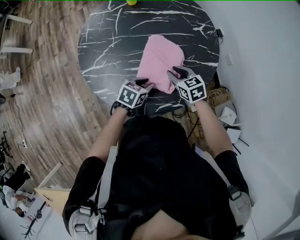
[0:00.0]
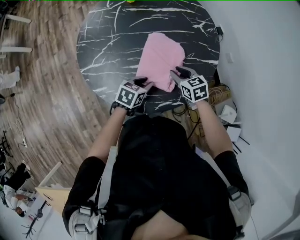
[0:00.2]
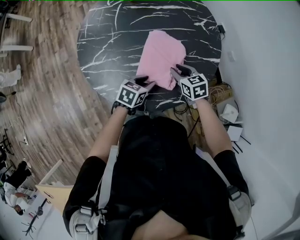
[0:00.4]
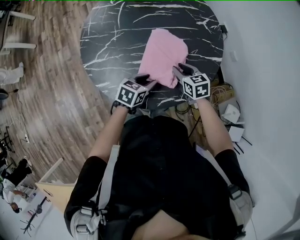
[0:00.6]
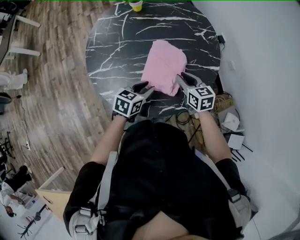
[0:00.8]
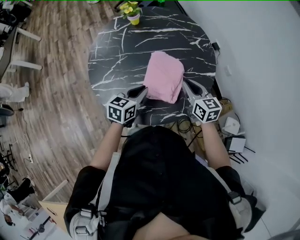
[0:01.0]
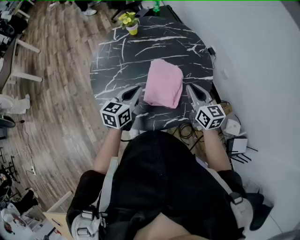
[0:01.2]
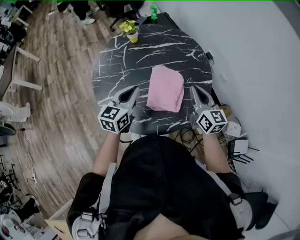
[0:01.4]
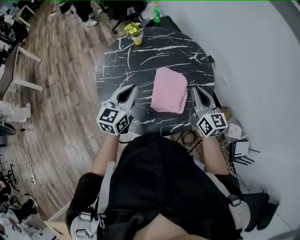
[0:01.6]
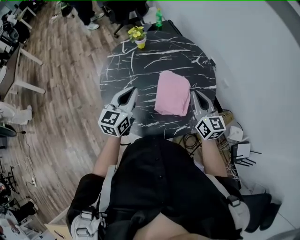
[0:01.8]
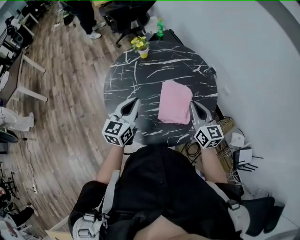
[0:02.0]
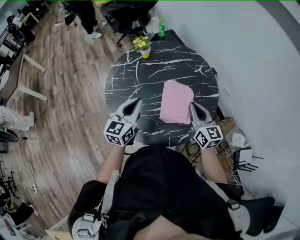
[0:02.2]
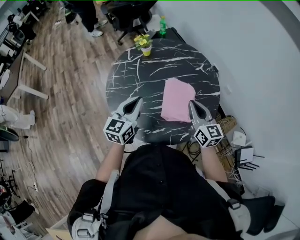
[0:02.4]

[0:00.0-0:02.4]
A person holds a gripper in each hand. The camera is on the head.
0:00.0 to 0:01.2: The left gripper shifts some 15 cm upward and to the left, and rotates some 30 degrees. Meanwhile the right gripper heads upward, covering roughly 15 cm, and turns by some 40 degrees.
0:01.2 to 0:02.4: The grippers both shift to the left and upward by some 10 cm.

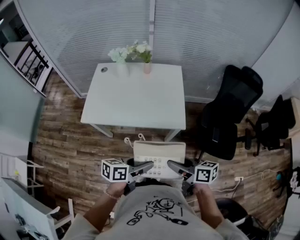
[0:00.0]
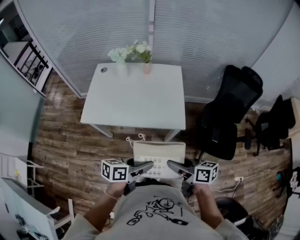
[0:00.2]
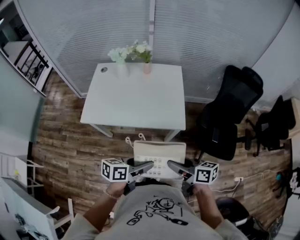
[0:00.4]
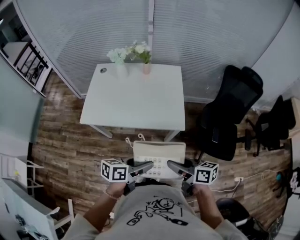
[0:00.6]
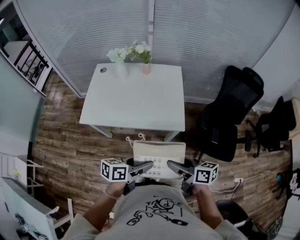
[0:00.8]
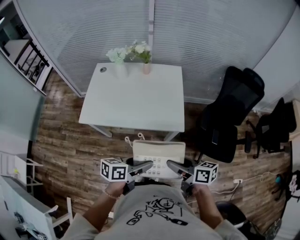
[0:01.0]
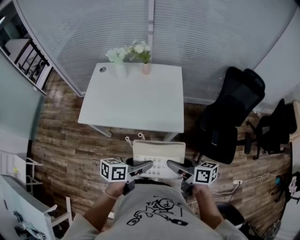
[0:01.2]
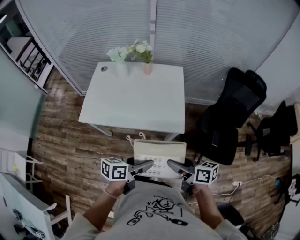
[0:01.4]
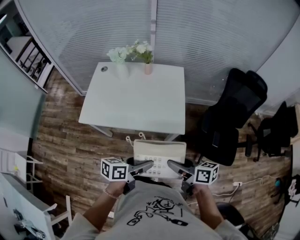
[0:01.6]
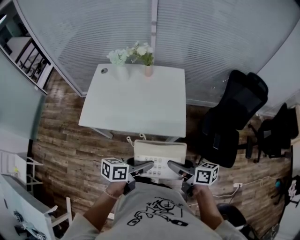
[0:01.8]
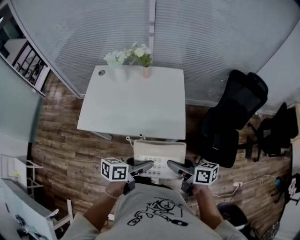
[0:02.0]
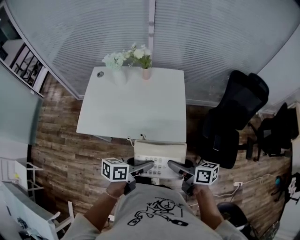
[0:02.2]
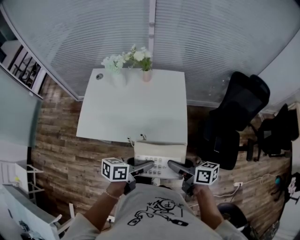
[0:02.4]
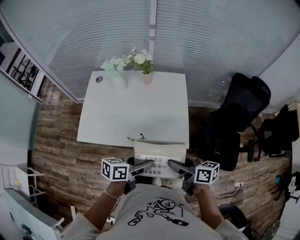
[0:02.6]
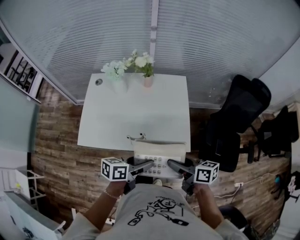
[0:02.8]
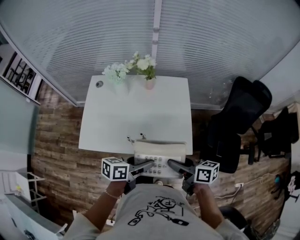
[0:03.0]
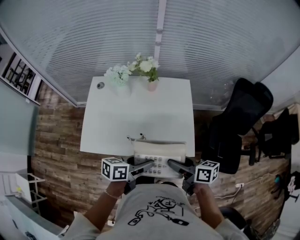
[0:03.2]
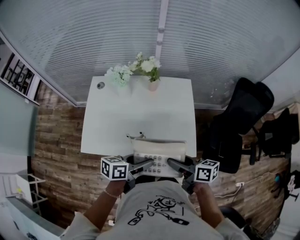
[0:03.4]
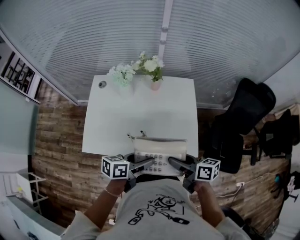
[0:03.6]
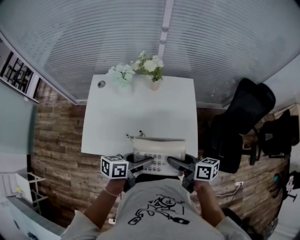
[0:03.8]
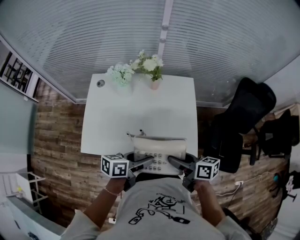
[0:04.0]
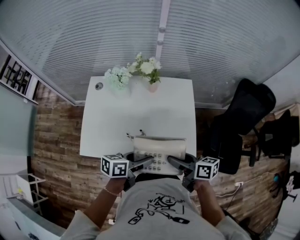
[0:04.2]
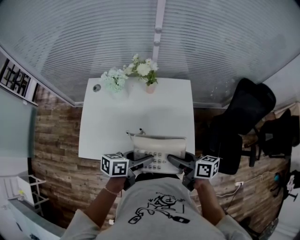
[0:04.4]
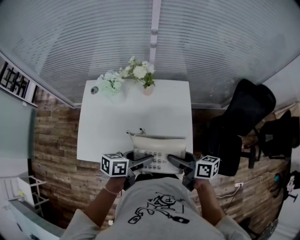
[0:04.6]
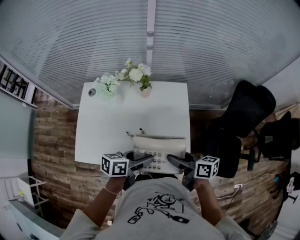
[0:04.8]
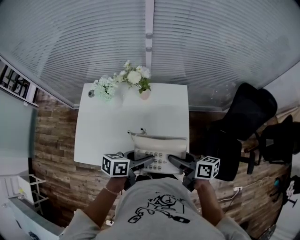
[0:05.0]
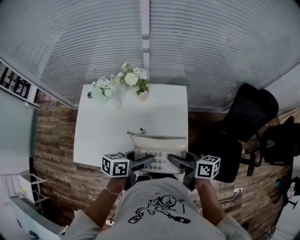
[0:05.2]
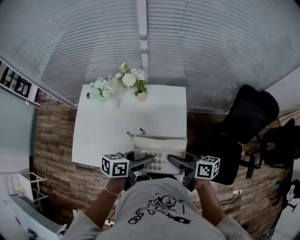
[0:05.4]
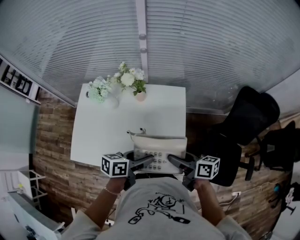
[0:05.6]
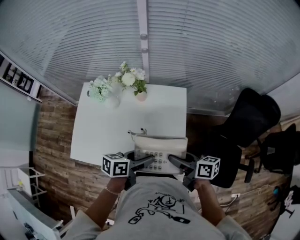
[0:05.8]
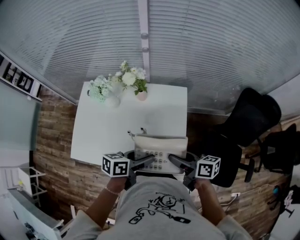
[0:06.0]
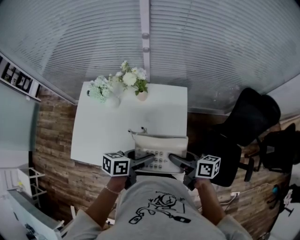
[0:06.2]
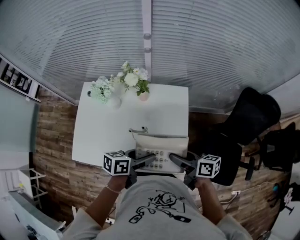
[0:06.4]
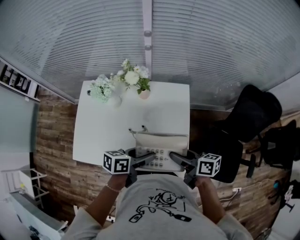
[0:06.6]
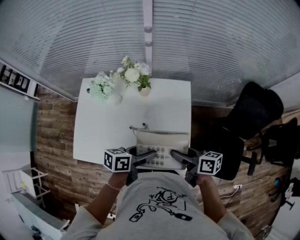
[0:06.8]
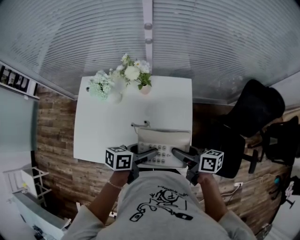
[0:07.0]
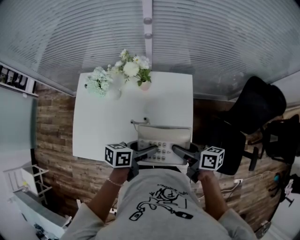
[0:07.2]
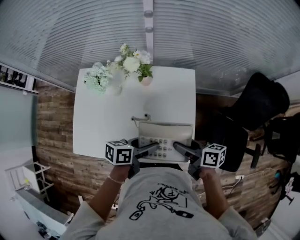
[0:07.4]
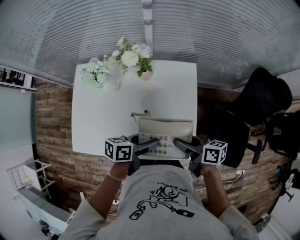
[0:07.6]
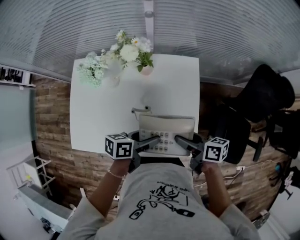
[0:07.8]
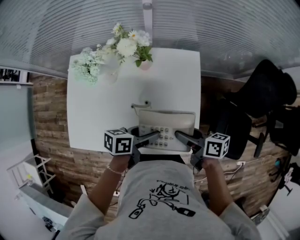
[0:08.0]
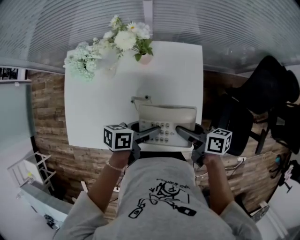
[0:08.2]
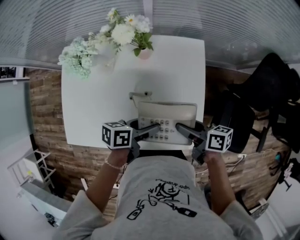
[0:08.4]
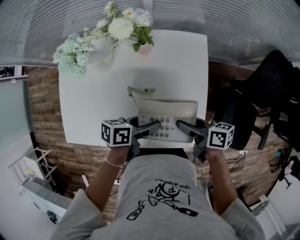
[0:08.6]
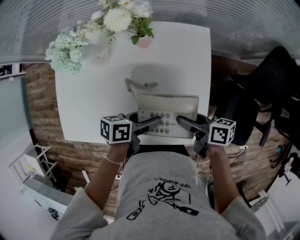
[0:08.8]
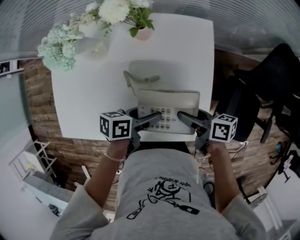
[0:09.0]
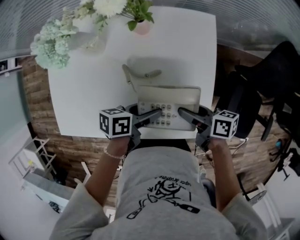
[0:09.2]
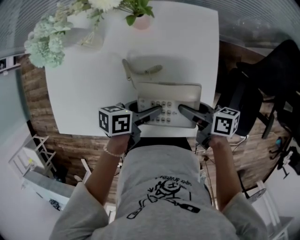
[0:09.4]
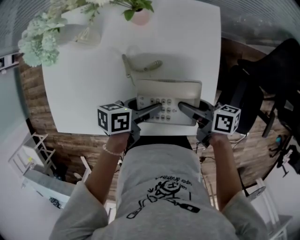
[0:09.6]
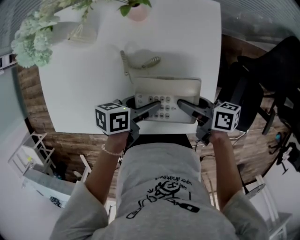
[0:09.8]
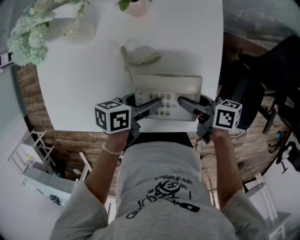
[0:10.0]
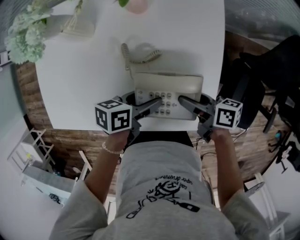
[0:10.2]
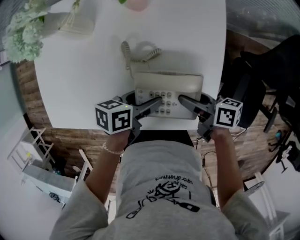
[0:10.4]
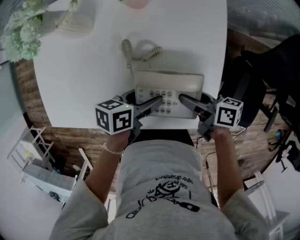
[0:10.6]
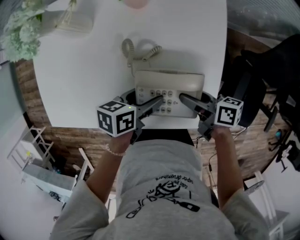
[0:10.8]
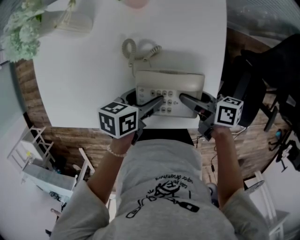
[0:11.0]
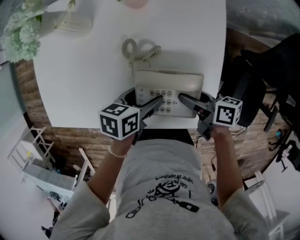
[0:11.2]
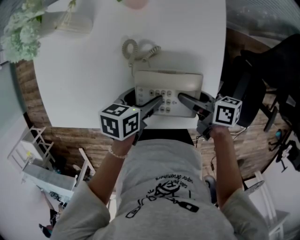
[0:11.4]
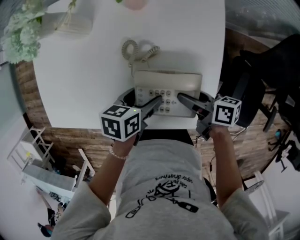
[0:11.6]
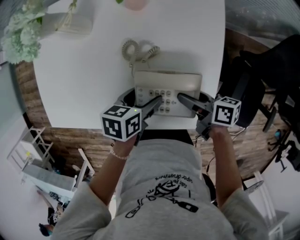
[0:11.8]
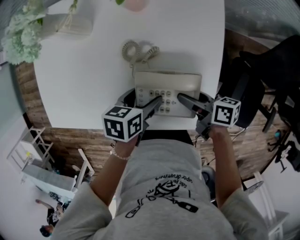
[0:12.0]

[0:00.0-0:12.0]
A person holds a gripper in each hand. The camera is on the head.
0:00.0 to 0:01.6: The grippers make only small movements.
0:01.6 to 0:03.0: The grippers both shift forward and to the left by roughly 15 cm.
0:03.0 to 0:04.4: The two grippers go approximately 10 cm forward.
0:04.4 to 0:06.0: The two grippers go approximately 10 cm to the right and forward.
0:06.0 to 0:07.6: The grippers both shift downward by approximately 5 cm.
0:07.6 to 0:09.0: Both grippers move downward, approximately 10 cm.
0:09.0 to 0:10.4: The grippers both shift downward by roughly 5 cm.
0:10.4 to 0:12.0: The grippers stay close to where they were, moving slightly.

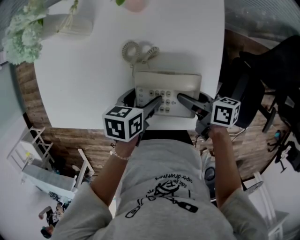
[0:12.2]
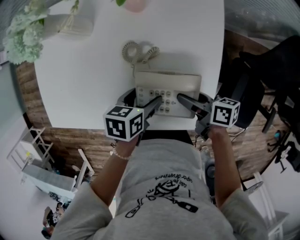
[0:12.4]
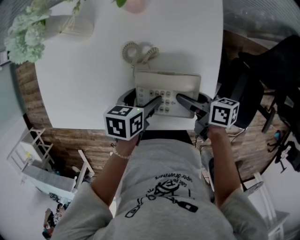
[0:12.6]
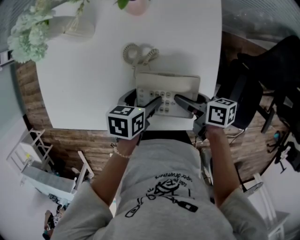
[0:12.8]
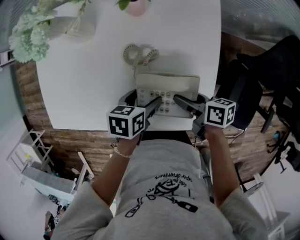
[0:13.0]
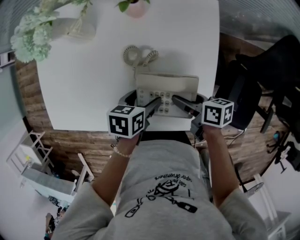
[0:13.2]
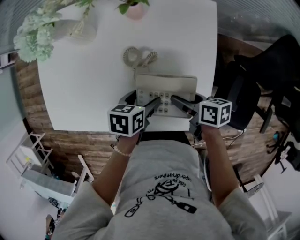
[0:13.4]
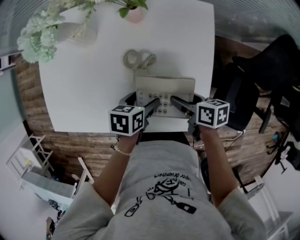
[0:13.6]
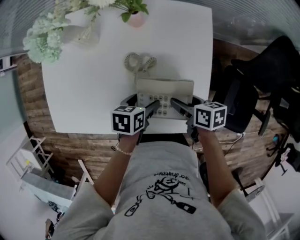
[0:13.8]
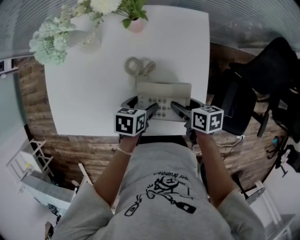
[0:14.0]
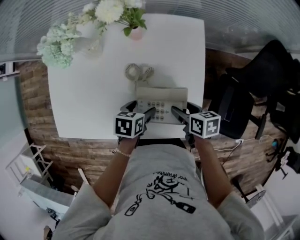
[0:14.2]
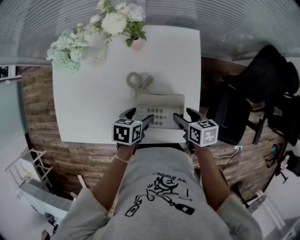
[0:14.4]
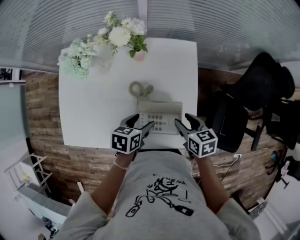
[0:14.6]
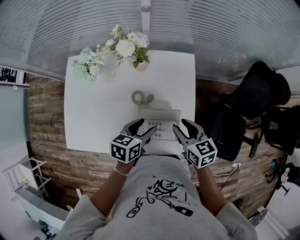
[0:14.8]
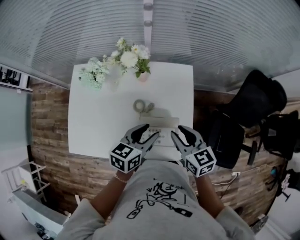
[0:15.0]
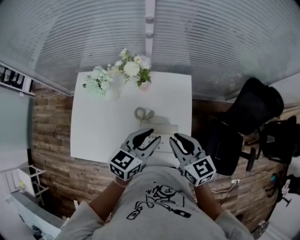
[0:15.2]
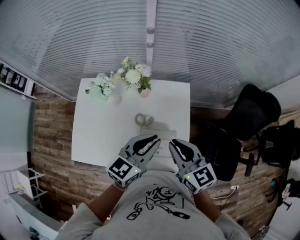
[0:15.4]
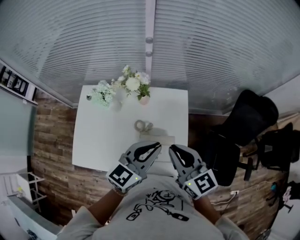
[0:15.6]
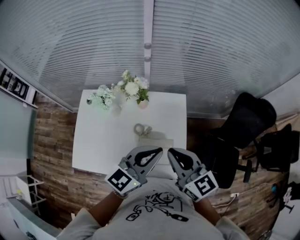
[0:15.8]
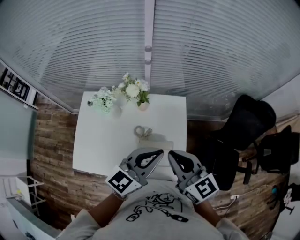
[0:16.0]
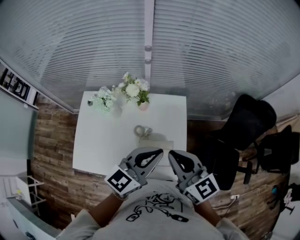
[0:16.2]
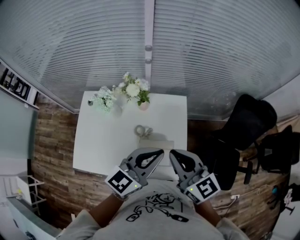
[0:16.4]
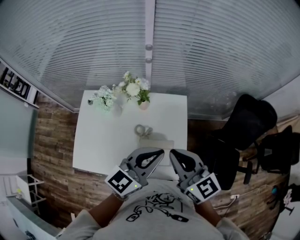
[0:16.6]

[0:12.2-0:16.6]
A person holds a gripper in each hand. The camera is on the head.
0:12.2 to 0:13.6: The grippers make only small movements.
0:13.6 to 0:15.2: The grippers both shift upward by approximately 25 cm. The left gripper angles its fingers upward, by roughly 30 degrees, and closes up, while the right gripper rotates approximately 50 degrees, and closes its fingers.
0:15.2 to 0:16.6: The two grippers go approximately 10 cm upward. The left gripper closes its fingers.

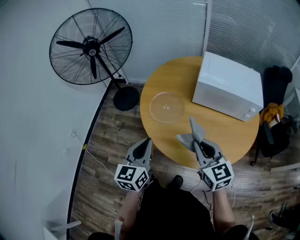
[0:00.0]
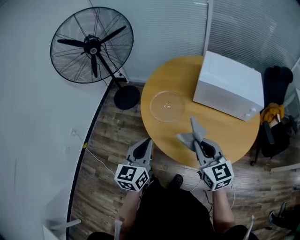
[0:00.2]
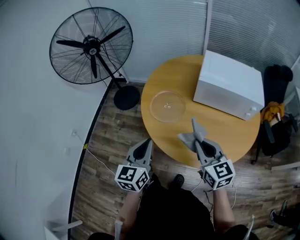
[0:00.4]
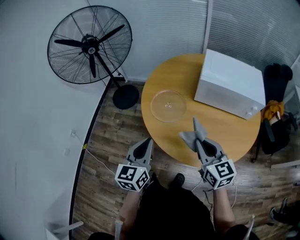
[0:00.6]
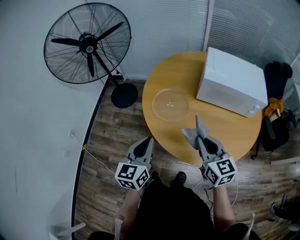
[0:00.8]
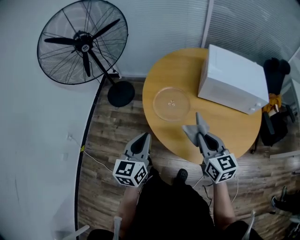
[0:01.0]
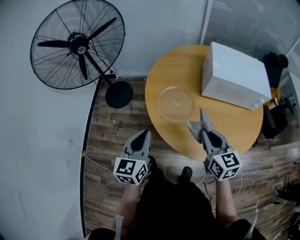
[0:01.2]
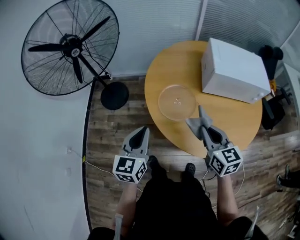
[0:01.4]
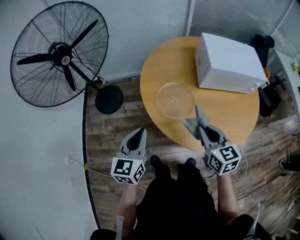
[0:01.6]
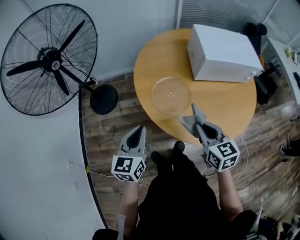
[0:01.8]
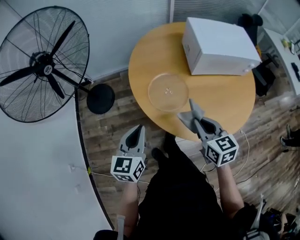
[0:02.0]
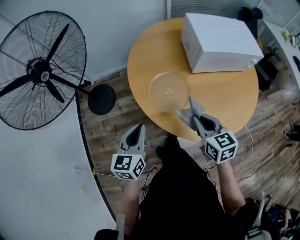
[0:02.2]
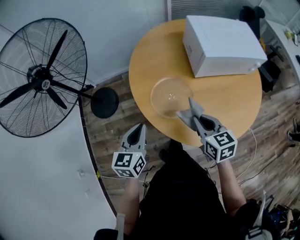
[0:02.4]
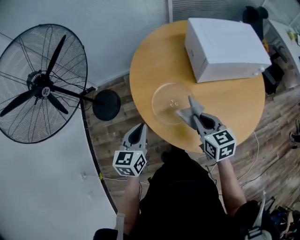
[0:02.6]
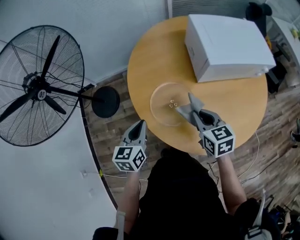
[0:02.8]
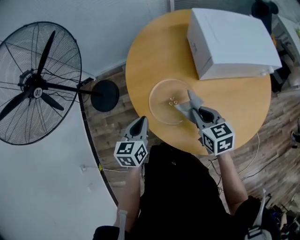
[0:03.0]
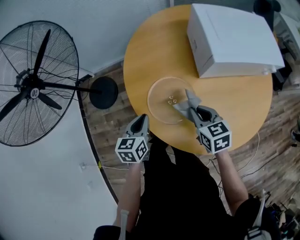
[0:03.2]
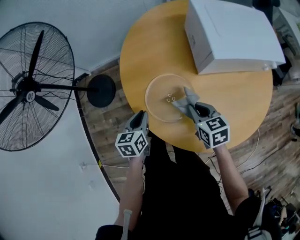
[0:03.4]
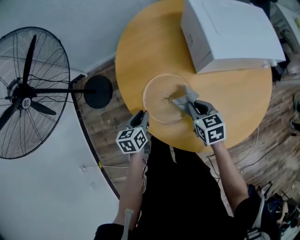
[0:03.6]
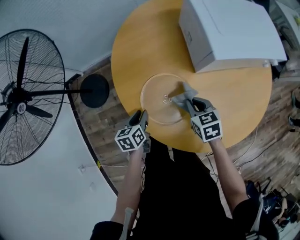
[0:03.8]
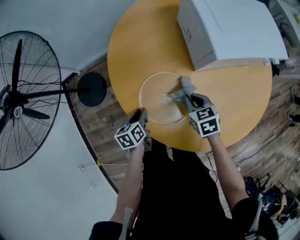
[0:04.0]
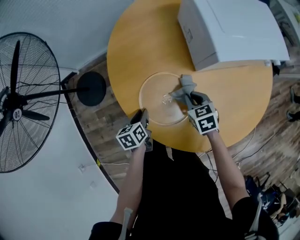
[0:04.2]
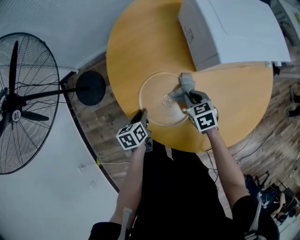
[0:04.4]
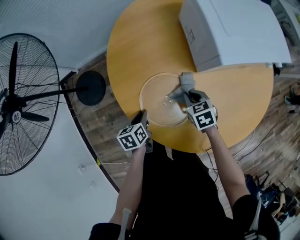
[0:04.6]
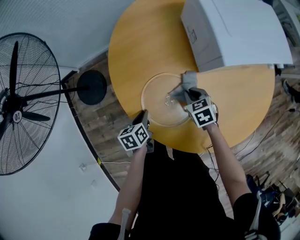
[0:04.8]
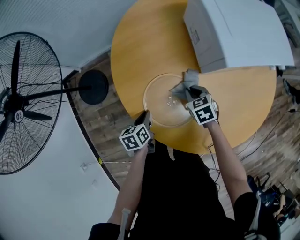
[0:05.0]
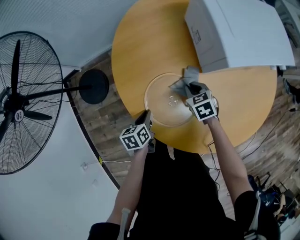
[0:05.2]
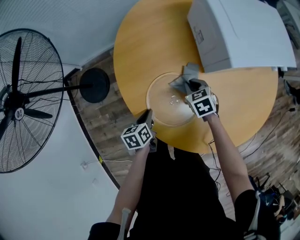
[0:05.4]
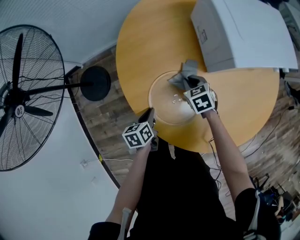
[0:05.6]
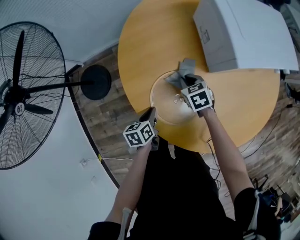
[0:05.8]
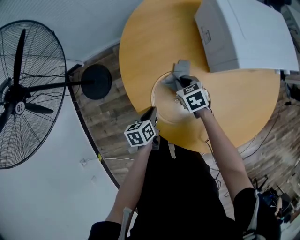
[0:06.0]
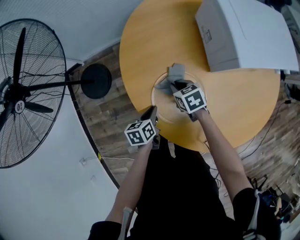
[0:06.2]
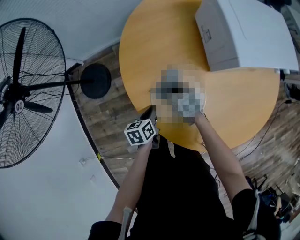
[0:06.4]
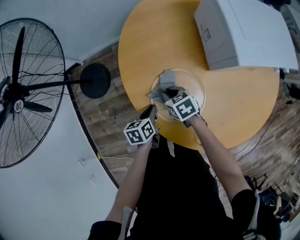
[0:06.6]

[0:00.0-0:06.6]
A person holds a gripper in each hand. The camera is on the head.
0:00.0 to 0:01.6: The grippers both shift to the left and forward by approximately 20 cm. The right gripper rotates some 30 degrees.
0:01.6 to 0:03.2: Both grippers travel together forward and downward, approximately 25 cm. The left gripper swivels some 20 degrees.
0:03.2 to 0:05.0: The left gripper shifts approximately 15 cm downward, and swivels some 20 degrees, while the right gripper goes approximately 20 cm downward and forward.
0:05.0 to 0:06.6: The right gripper travels to the left by roughly 15 cm.
